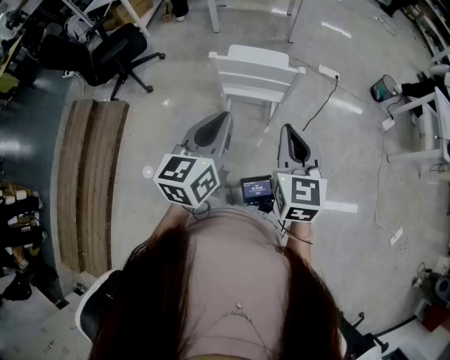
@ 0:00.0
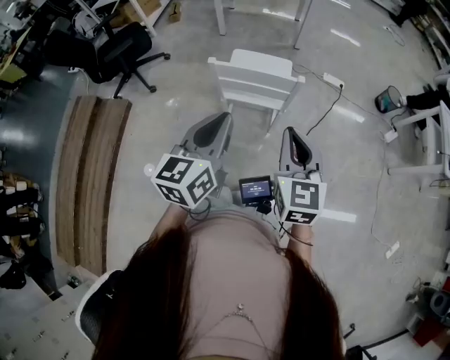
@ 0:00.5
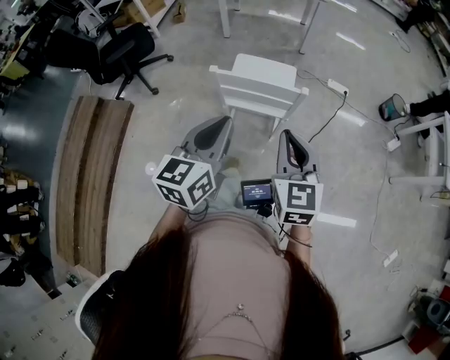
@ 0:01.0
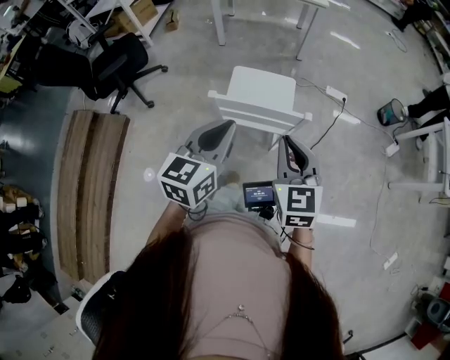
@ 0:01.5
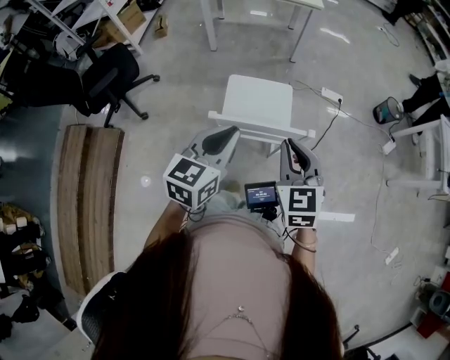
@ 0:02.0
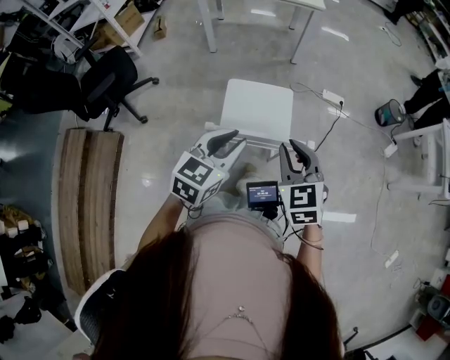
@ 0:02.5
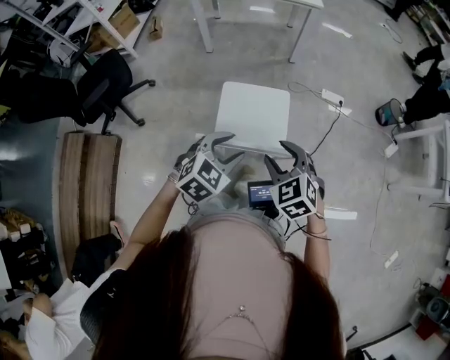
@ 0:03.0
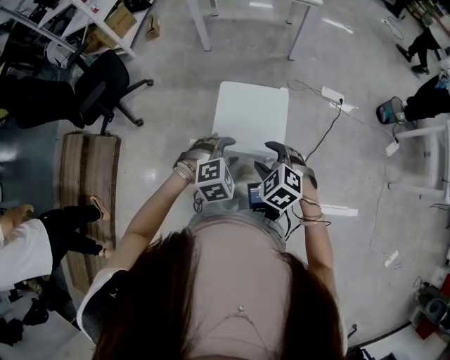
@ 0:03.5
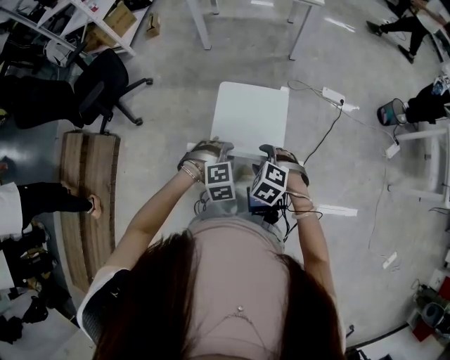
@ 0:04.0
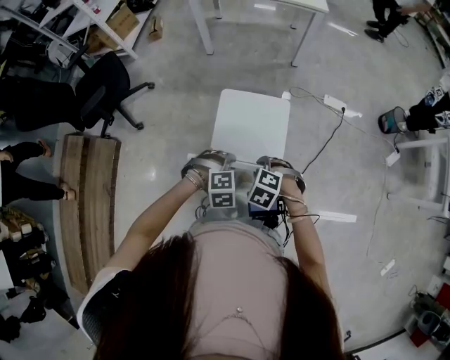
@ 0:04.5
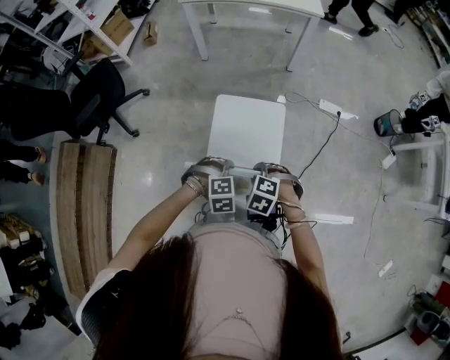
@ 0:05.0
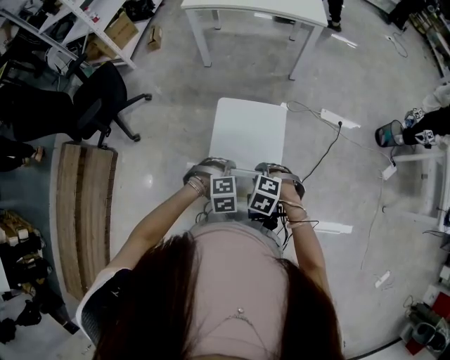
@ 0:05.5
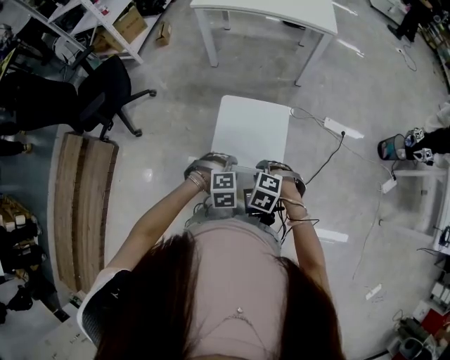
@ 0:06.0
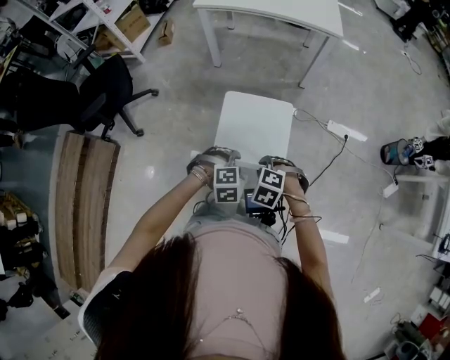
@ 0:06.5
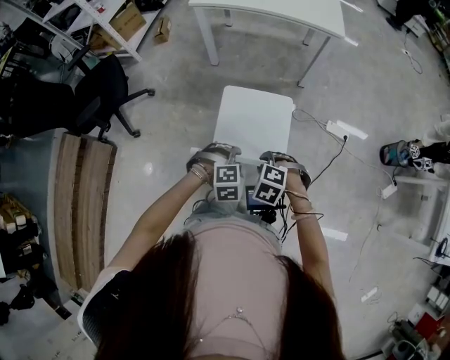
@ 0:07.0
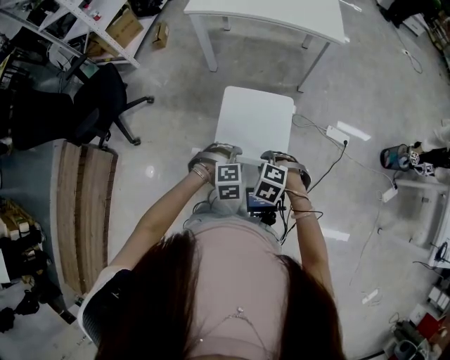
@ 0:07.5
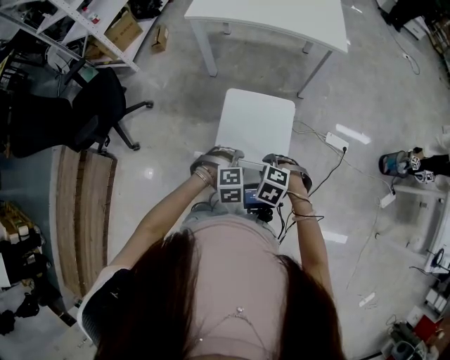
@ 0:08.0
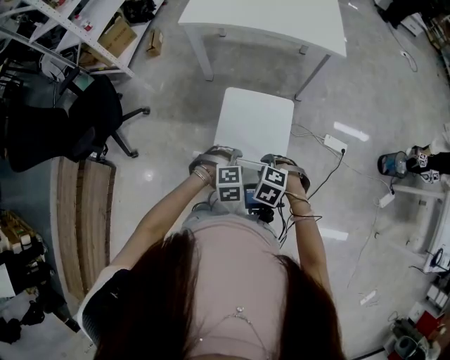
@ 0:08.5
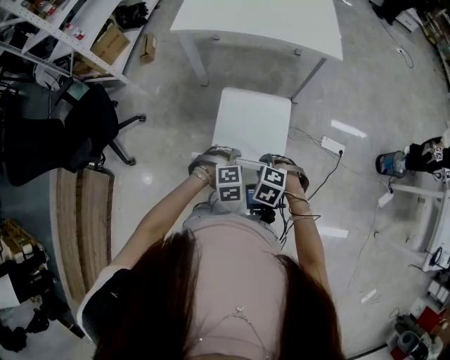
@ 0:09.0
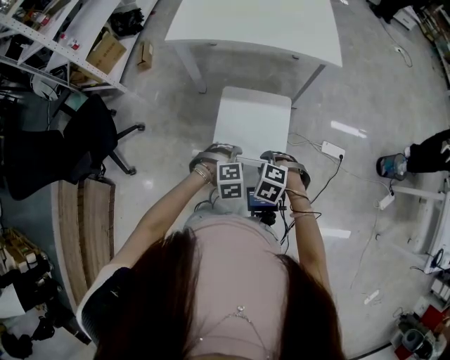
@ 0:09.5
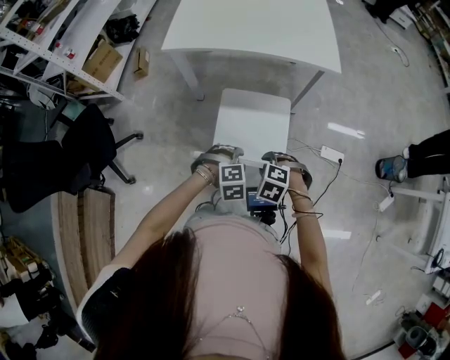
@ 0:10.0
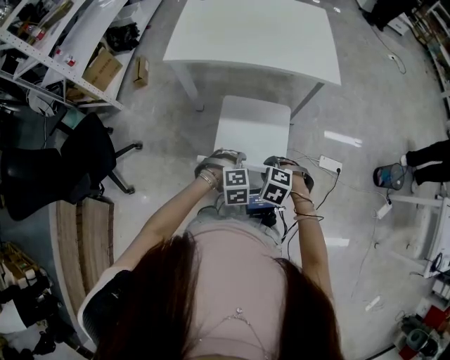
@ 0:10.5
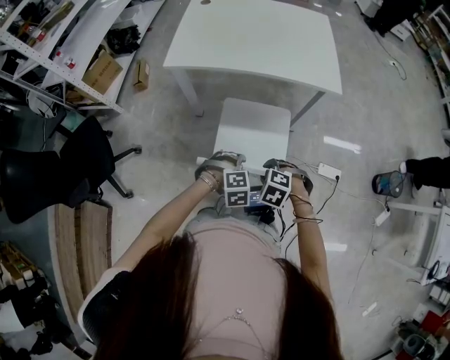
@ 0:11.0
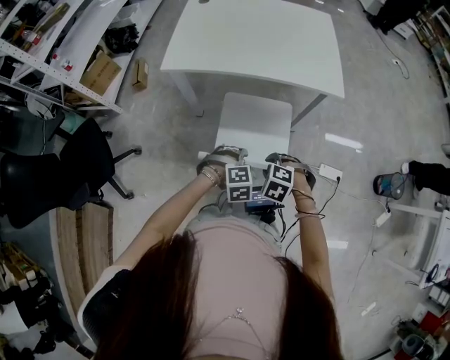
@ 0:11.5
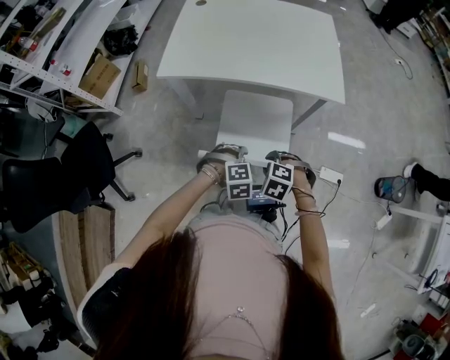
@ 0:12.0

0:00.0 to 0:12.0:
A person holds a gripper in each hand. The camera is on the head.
0:00.0 to 0:02.0: The grippers both shift forward by roughly 25 cm.
0:02.0 to 0:04.0: The two grippers go approximately 25 cm downward. The right gripper points its fingers approximately 40 degrees further downward, and opens its fingers, while the left gripper tilts its fingers roughly 50 degrees downward, and opens.
0:04.0 to 0:06.0: The left gripper changes place by roughly 10 cm. The right gripper shifts by about 10 cm, and closes its fingers.
0:06.0 to 0:08.0: The left gripper shifts by approximately 20 cm. The right gripper ends up roughly 20 cm from where it was.
0:08.0 to 0:10.0: The left gripper changes place by approximately 20 cm; the right gripper ends up roughly 20 cm from where it was.
0:10.0 to 0:12.0: The left gripper shifts by approximately 15 cm. Meanwhile the right gripper moves about 15 cm.

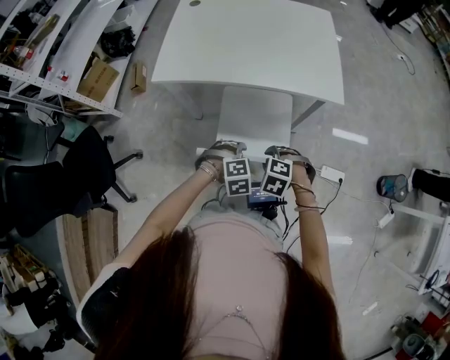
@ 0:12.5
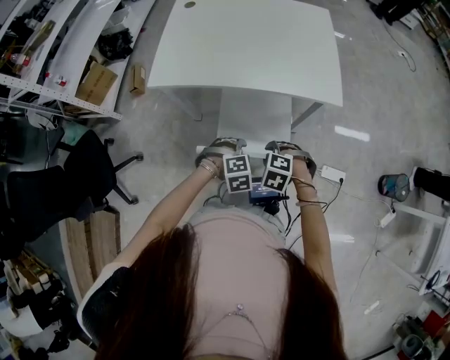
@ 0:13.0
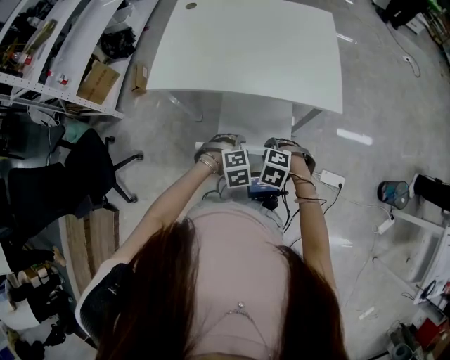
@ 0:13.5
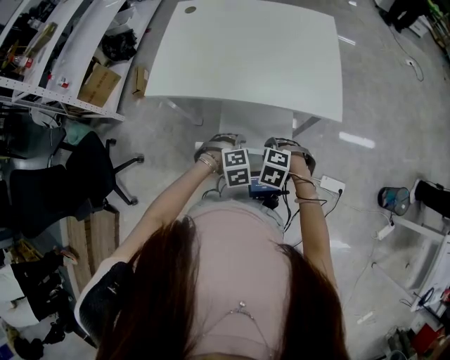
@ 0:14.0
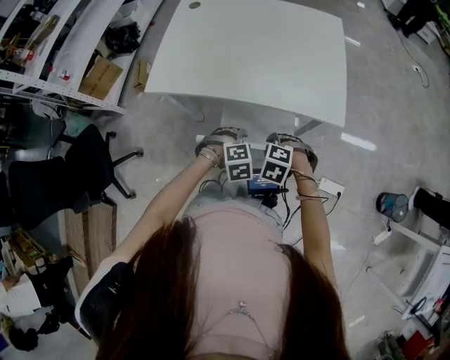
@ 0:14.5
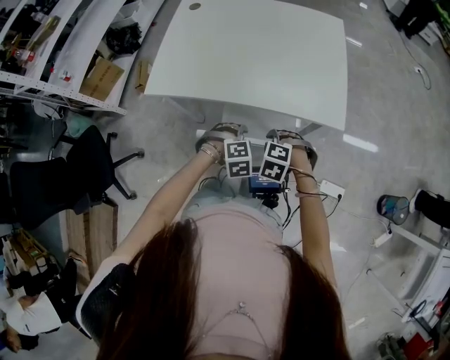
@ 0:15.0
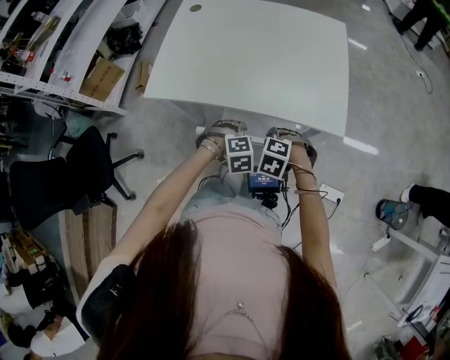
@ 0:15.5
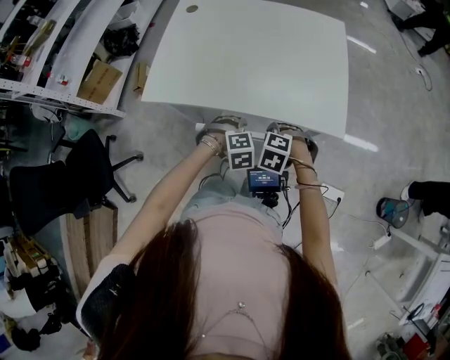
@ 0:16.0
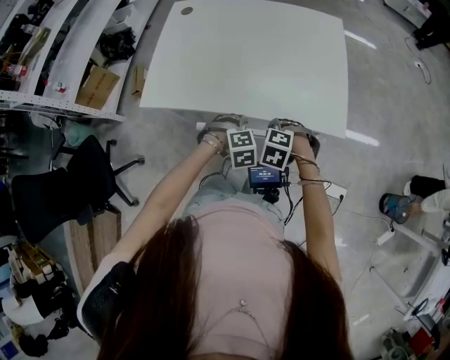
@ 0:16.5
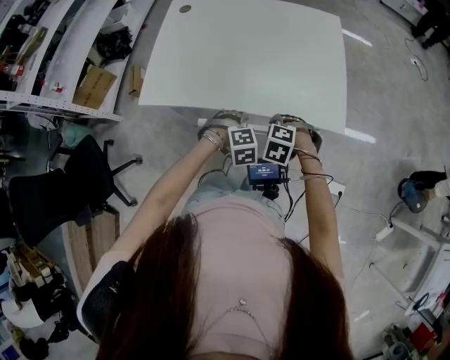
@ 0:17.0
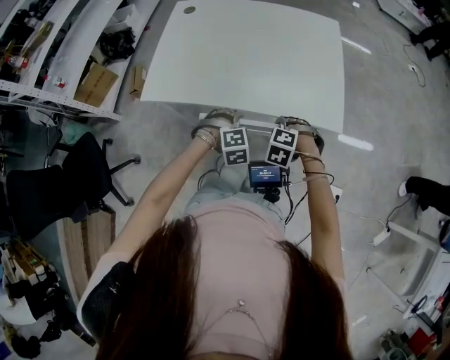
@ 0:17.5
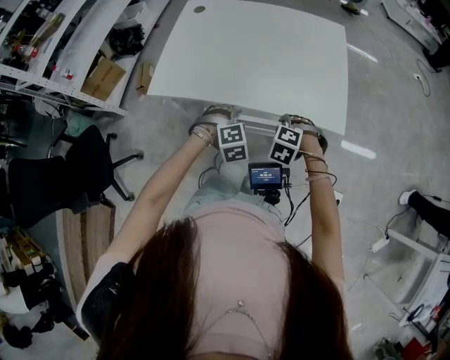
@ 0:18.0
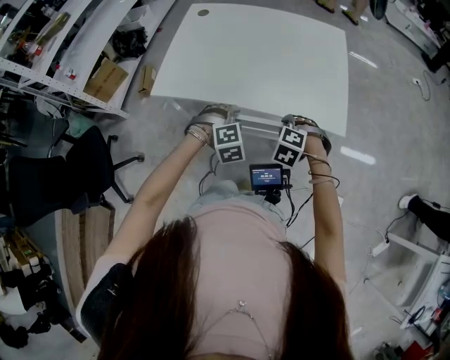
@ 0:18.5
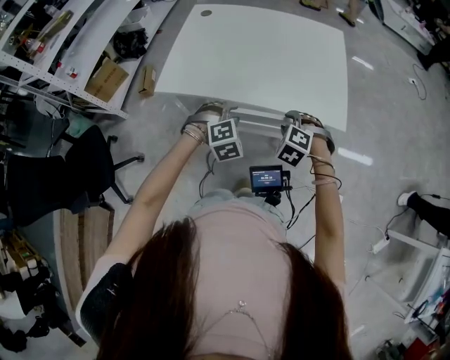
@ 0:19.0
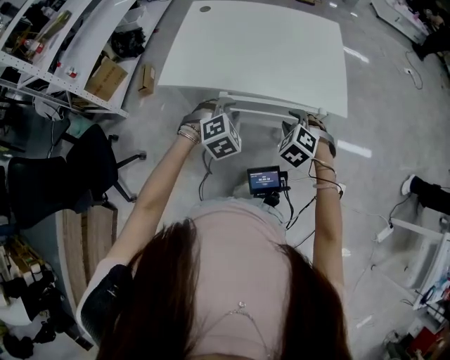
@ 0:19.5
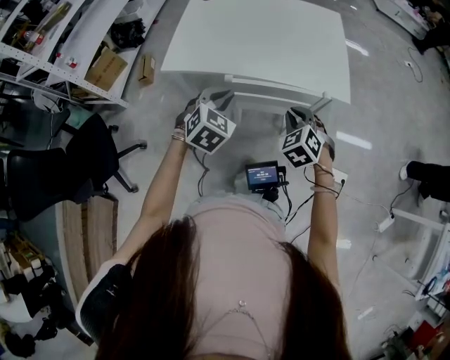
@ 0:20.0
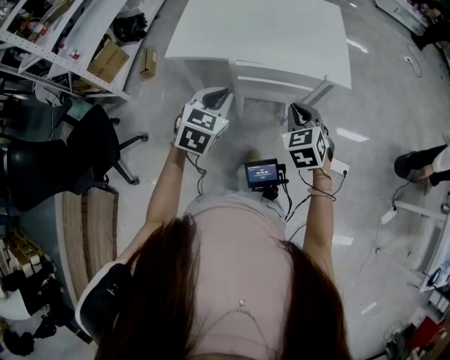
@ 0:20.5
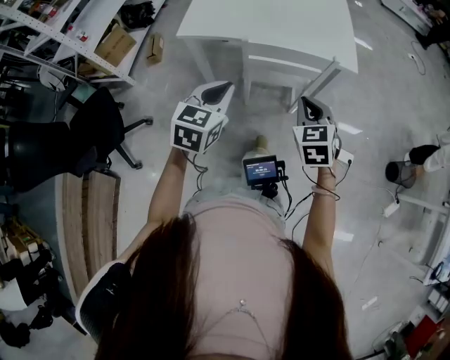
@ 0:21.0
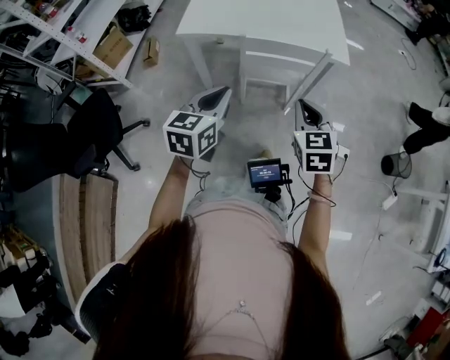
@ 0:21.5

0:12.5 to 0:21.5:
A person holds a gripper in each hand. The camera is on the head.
0:12.5 to 0:14.5: The right gripper changes place by some 15 cm. The left gripper moves some 15 cm.
0:14.5 to 0:17.0: The left gripper shifts by some 10 cm. The right gripper ends up approximately 10 cm from where it was.
0:17.0 to 0:19.5: The grippers both shift upward by some 10 cm. The right gripper rotates approximately 30 degrees; the left gripper changes its angle by roughly 30 degrees.
0:19.5 to 0:21.5: Both grippers move backward and upward, roughly 30 cm. The right gripper swivels approximately 50 degrees, and closes up. Meanwhile the left gripper rolls counterclockwise, seen from behind, by approximately 60 degrees, and closes.

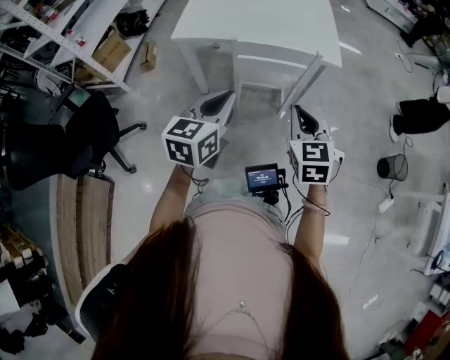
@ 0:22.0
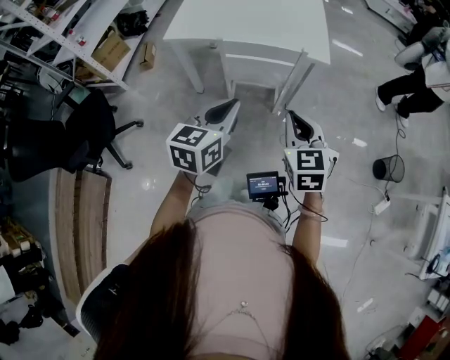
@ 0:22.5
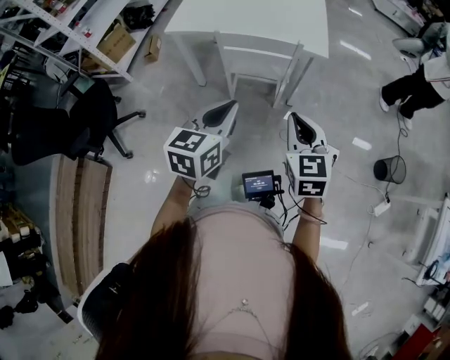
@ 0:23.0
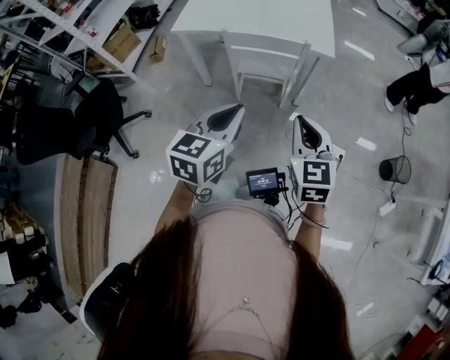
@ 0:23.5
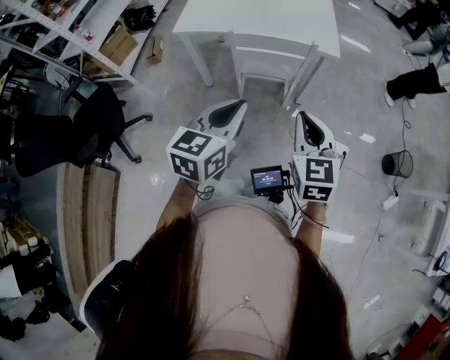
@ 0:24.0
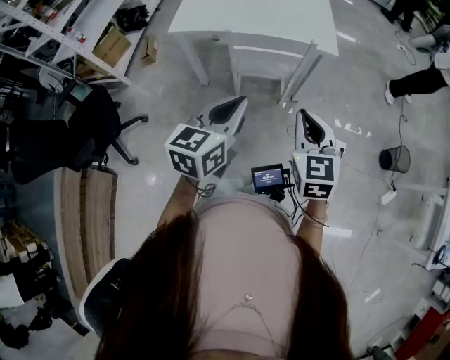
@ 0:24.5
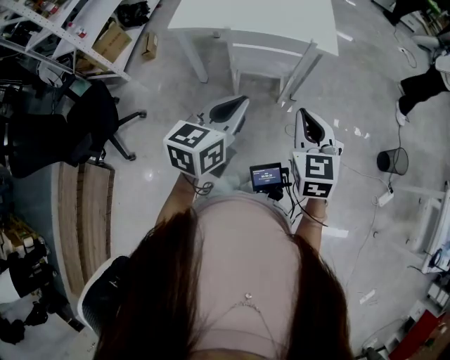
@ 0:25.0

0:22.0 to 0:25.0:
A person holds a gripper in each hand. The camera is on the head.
0:22.0 to 0:23.5: The two grippers go about 15 cm to the right and backward.
0:23.5 to 0:25.0: The left gripper ends up some 5 cm from where it was; the right gripper moves about 5 cm.

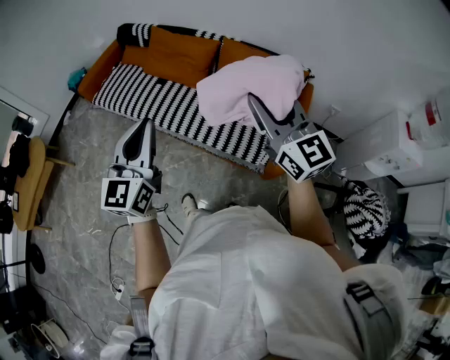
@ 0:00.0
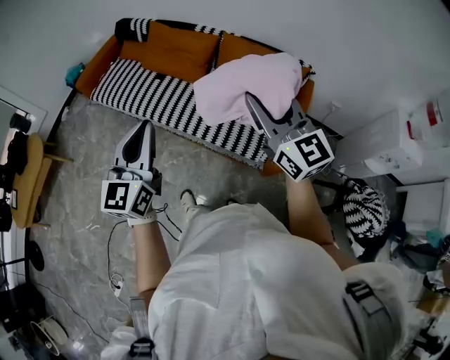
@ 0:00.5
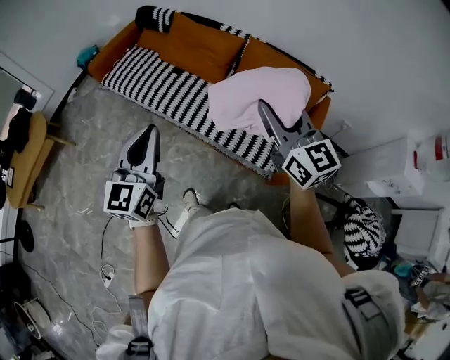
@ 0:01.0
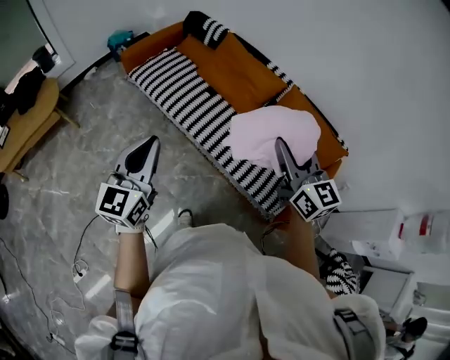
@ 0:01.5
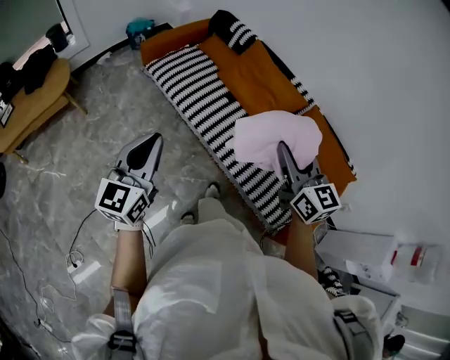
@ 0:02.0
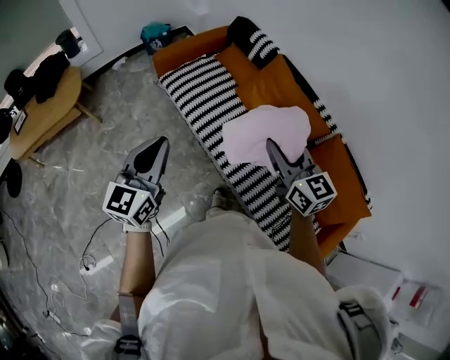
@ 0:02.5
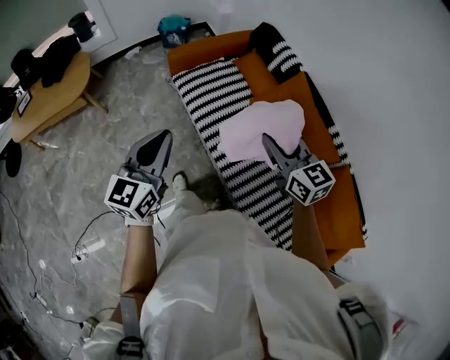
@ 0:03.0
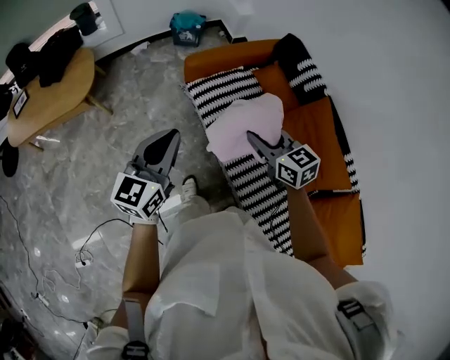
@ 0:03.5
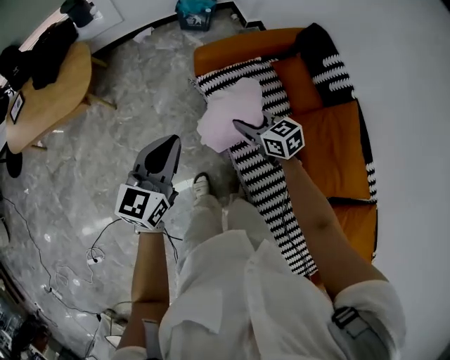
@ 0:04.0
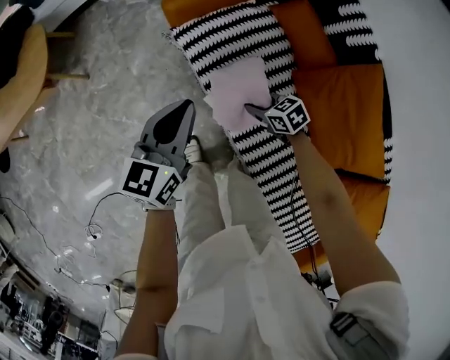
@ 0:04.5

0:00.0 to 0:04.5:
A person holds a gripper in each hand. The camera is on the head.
0:00.0 to 0:02.0: The two grippers go approximately 35 cm to the left and forward. The right gripper swivels roughly 20 degrees.
0:02.0 to 0:04.5: The pair of grippers is taken approximately 60 cm. The left gripper turns by about 30 degrees; the right gripper tilts its fingers approximately 40 degrees downward.
